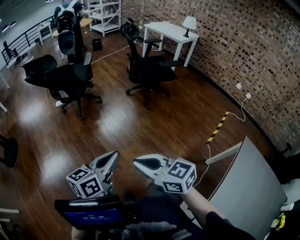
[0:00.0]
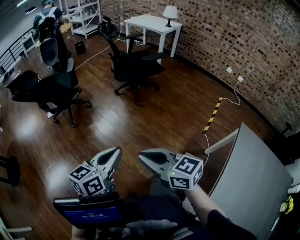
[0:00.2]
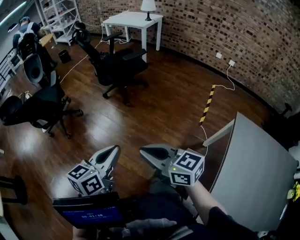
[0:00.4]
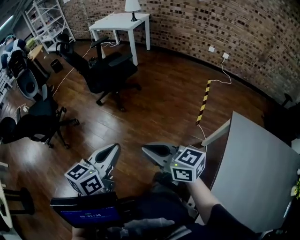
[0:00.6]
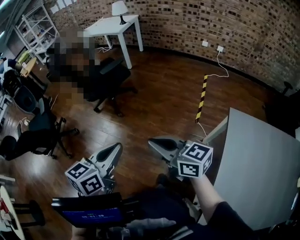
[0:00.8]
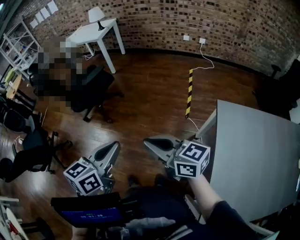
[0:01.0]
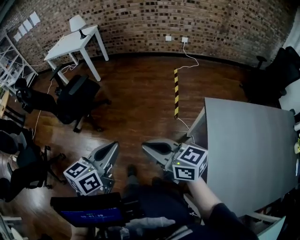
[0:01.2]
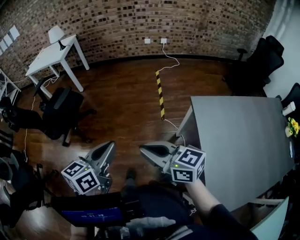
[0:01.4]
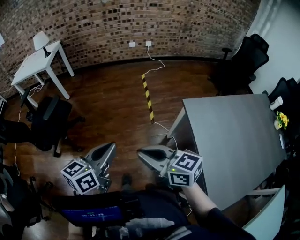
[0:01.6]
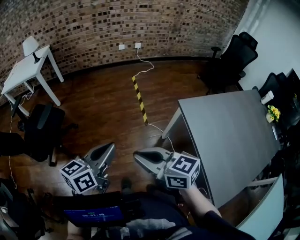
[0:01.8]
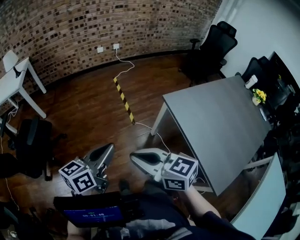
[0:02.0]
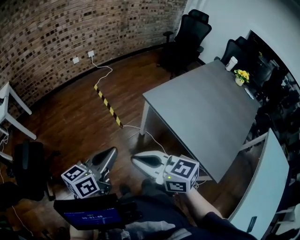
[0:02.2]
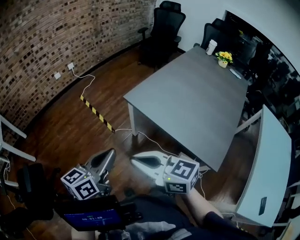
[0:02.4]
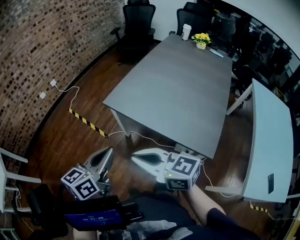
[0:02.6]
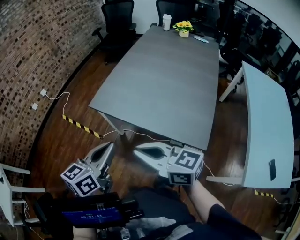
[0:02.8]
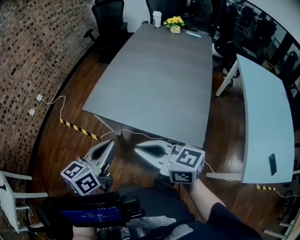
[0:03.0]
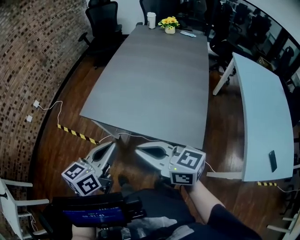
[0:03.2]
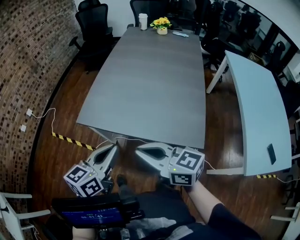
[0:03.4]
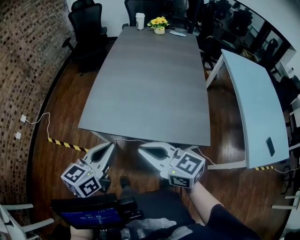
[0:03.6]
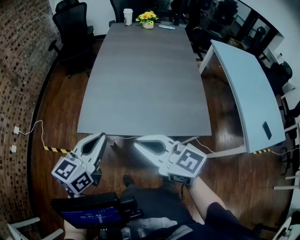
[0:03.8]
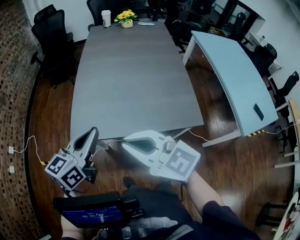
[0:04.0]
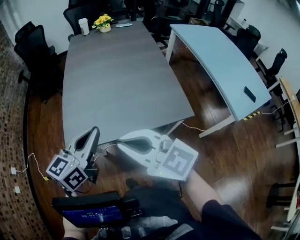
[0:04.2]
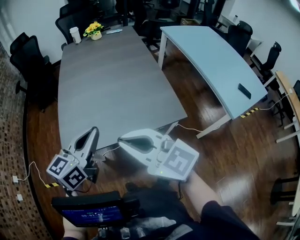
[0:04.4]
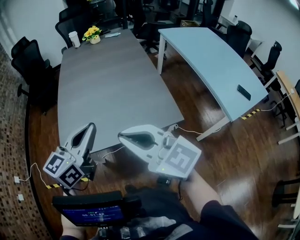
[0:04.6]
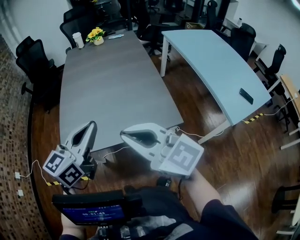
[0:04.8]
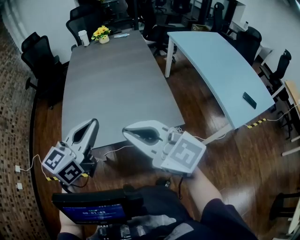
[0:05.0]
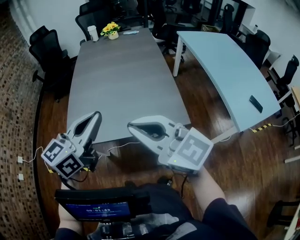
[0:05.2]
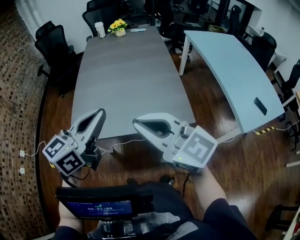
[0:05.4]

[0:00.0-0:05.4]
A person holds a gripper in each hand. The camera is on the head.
0:00.0 to 0:01.4: The pair of grippers is taken some 50 cm. The right gripper changes its angle by roughly 50 degrees. Meanwhile the left gripper swivels roughly 50 degrees.
0:01.4 to 0:02.8: The right gripper shifts by about 20 cm, and changes its angle by about 60 degrees, while the left gripper changes place by approximately 30 cm, and changes its angle by roughly 60 degrees.
0:02.8 to 0:04.0: The right gripper changes place by approximately 15 cm, and turns by roughly 30 degrees. The left gripper moves approximately 20 cm, and turns by some 30 degrees.
0:04.0 to 0:05.4: The two grippers go roughly 20 cm to the right and upward.

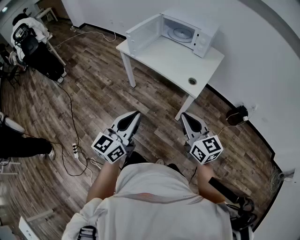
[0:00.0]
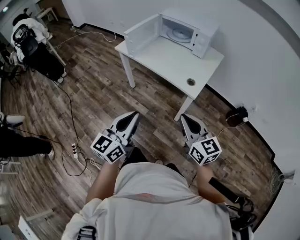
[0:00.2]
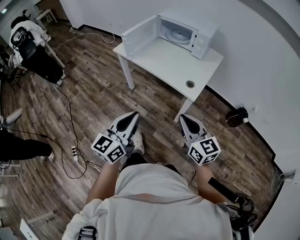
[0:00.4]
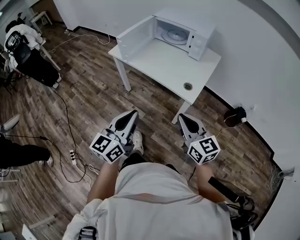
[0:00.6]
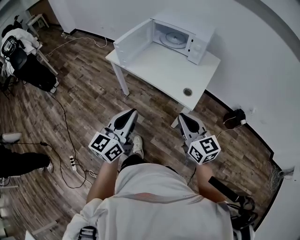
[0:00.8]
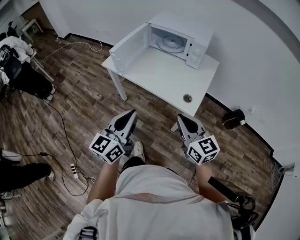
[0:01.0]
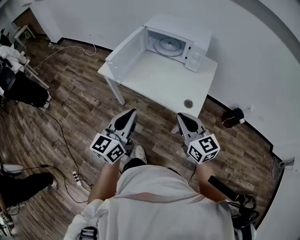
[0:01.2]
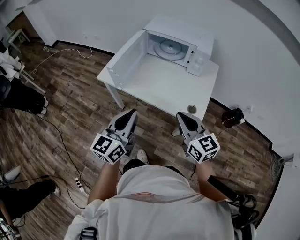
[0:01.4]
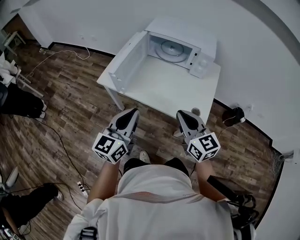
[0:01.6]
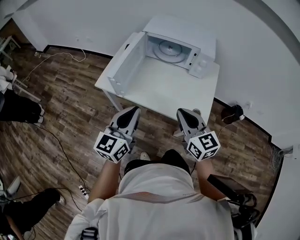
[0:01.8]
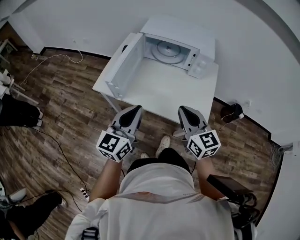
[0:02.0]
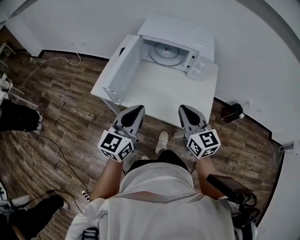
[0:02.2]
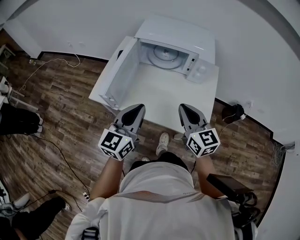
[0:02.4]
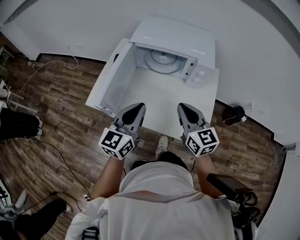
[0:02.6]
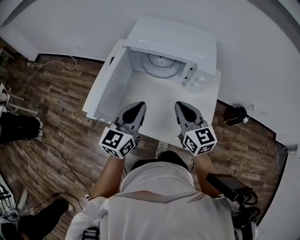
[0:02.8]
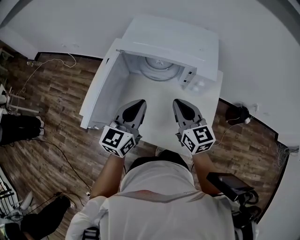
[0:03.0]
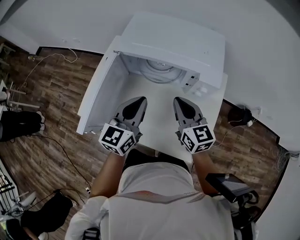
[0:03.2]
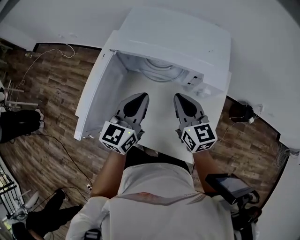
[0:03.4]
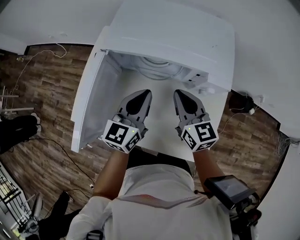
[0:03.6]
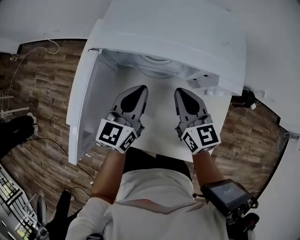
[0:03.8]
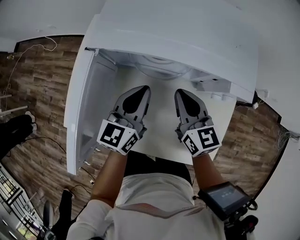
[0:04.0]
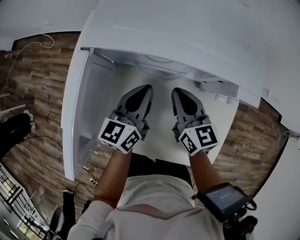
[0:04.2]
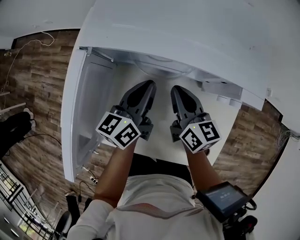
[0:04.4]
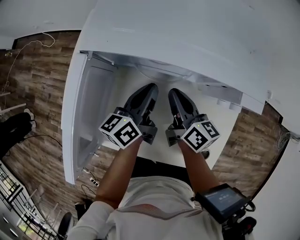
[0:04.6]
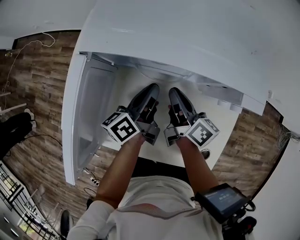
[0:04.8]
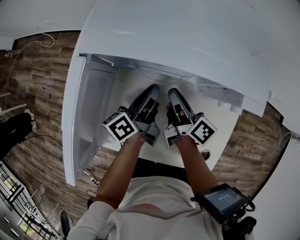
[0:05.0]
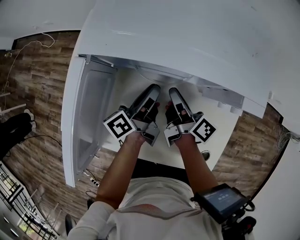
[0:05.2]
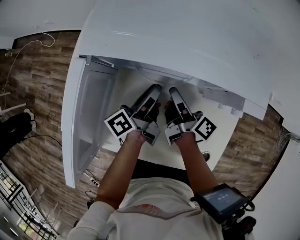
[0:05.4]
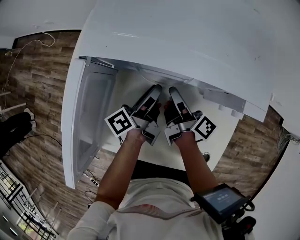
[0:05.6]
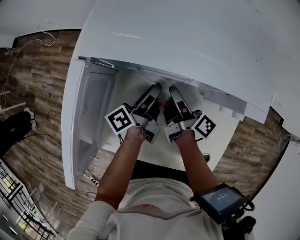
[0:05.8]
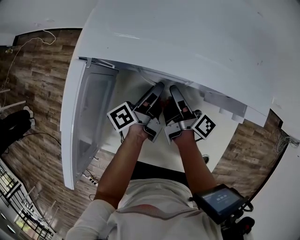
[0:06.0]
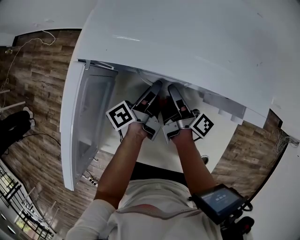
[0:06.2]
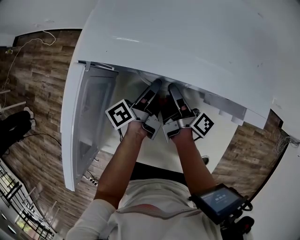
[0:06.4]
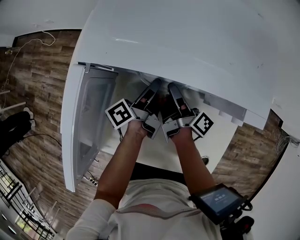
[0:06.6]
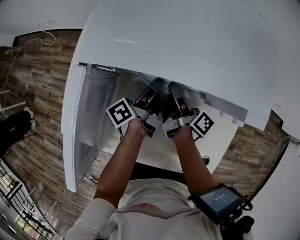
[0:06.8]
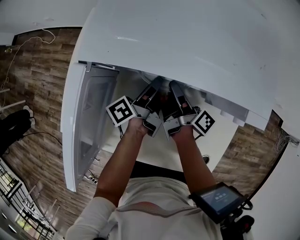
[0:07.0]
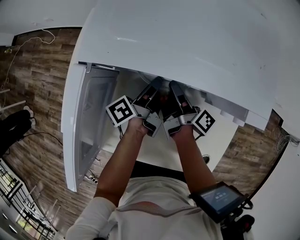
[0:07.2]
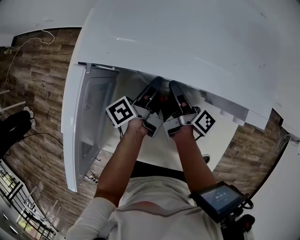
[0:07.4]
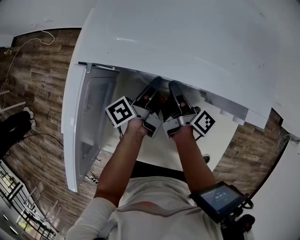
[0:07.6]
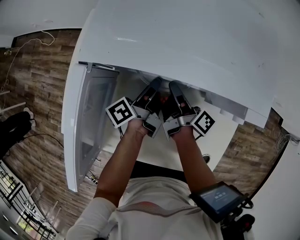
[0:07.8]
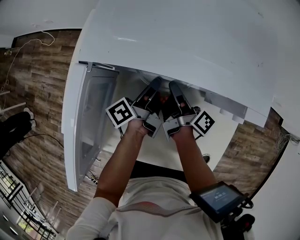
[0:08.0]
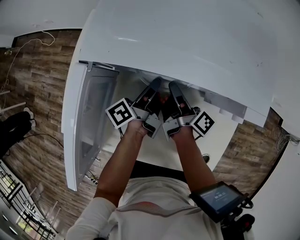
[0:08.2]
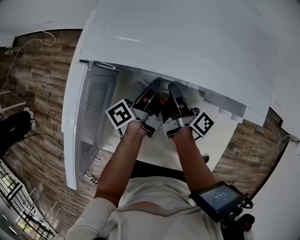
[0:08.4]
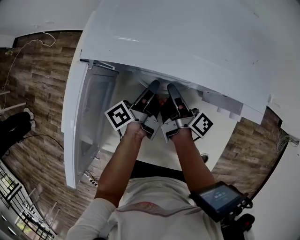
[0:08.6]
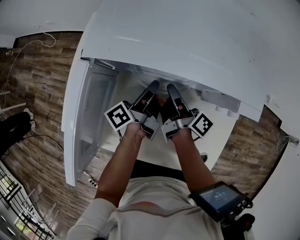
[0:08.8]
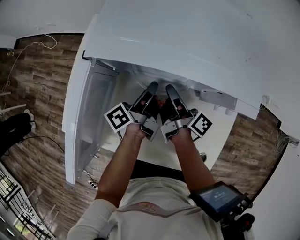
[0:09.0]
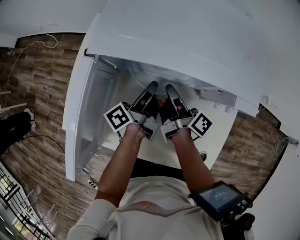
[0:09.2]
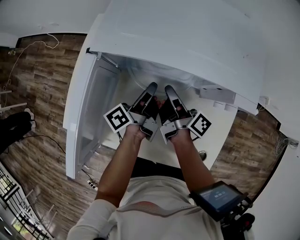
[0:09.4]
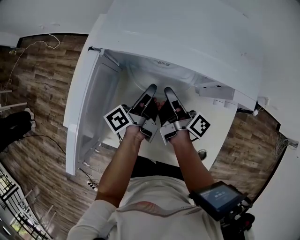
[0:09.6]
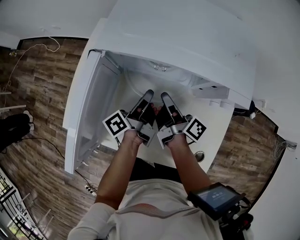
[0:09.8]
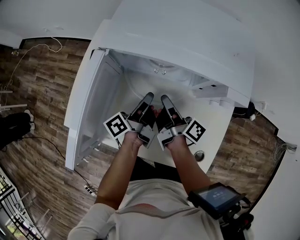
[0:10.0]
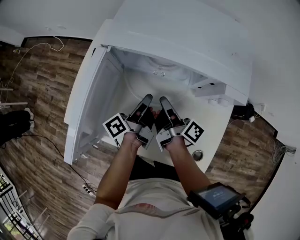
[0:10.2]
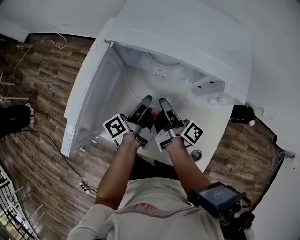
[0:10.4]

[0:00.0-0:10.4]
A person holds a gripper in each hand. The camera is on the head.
0:00.0 to 0:01.4: Both grippers travel together forward, roughly 30 cm.
0:01.4 to 0:03.0: The two grippers go some 35 cm forward.
0:03.0 to 0:04.4: The grippers both shift downward and forward by some 25 cm. The right gripper swivels about 20 degrees. The left gripper changes its angle by roughly 30 degrees.
0:04.4 to 0:06.0: The grippers both shift downward by about 5 cm. The right gripper rolls clockwise, seen from behind, by roughly 60 degrees, and opens. The left gripper rotates around the line of its fingers by about 40 degrees, counterclockwise from behind, and opens up.
0:06.0 to 0:07.4: The left gripper closes up.
0:07.4 to 0:09.0: The grippers move only a little.
0:09.0 to 0:10.4: Both grippers move backward, roughly 10 cm.

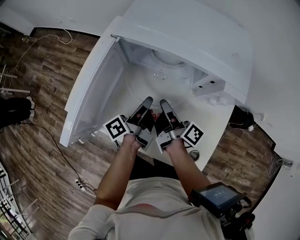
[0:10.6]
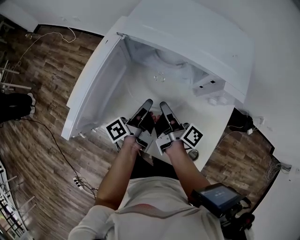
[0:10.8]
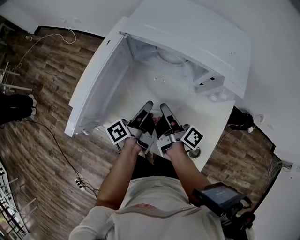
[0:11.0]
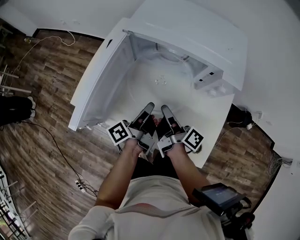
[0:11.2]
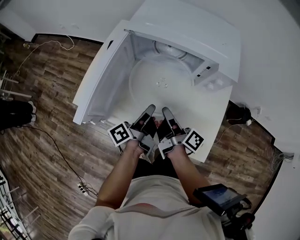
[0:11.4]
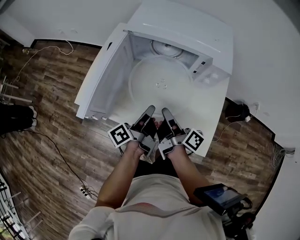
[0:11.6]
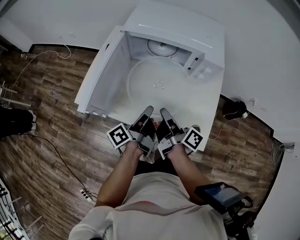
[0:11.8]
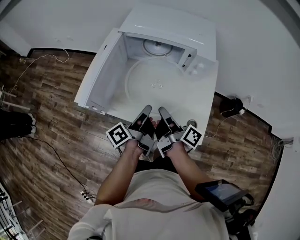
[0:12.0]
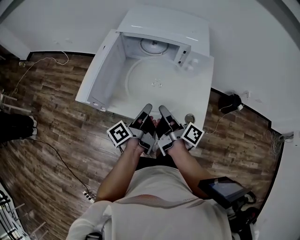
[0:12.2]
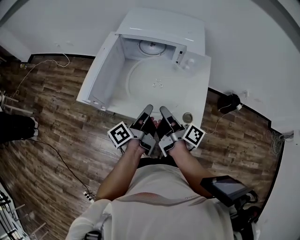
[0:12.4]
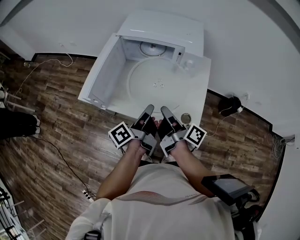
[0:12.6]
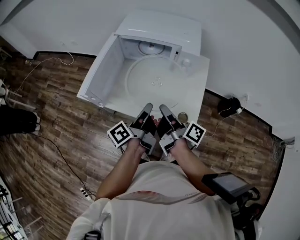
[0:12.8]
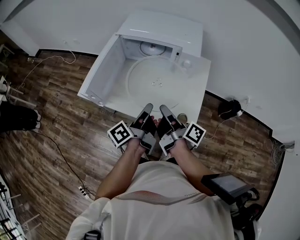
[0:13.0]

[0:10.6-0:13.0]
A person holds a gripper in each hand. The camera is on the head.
0:10.6 to 0:11.8: Both grippers travel together backward and upward, some 20 cm.
0:11.8 to 0:13.0: Both grippers travel together upward, backward and to the right, roughly 10 cm.

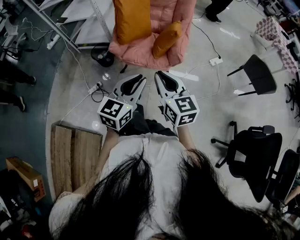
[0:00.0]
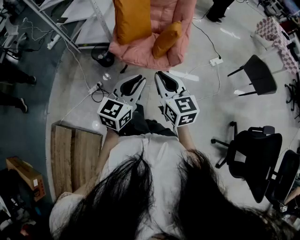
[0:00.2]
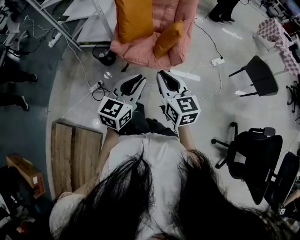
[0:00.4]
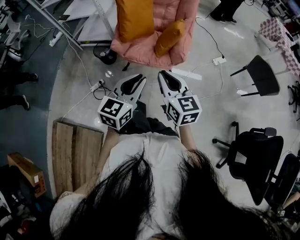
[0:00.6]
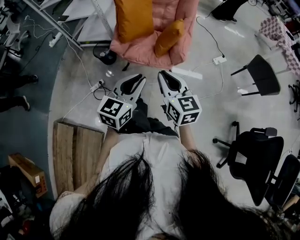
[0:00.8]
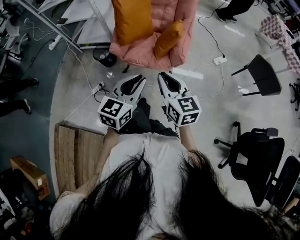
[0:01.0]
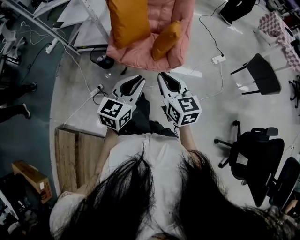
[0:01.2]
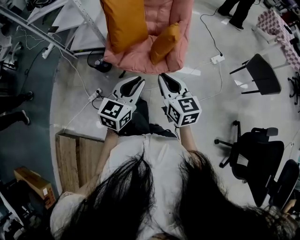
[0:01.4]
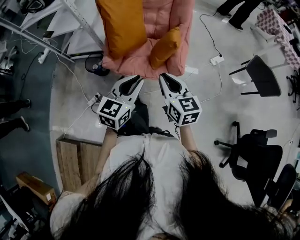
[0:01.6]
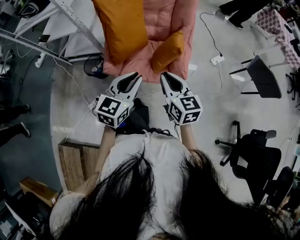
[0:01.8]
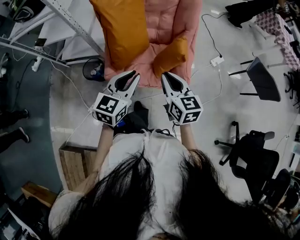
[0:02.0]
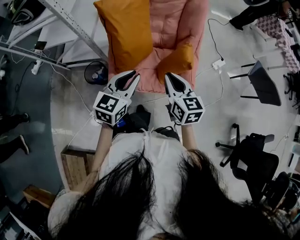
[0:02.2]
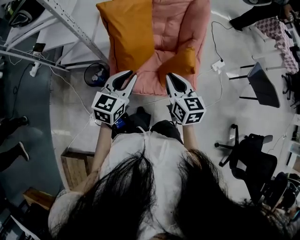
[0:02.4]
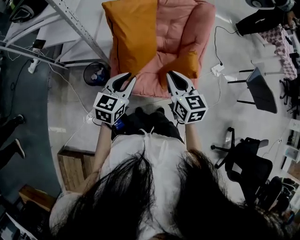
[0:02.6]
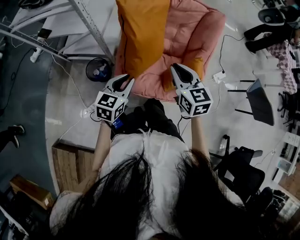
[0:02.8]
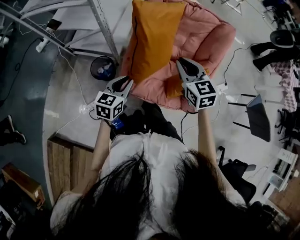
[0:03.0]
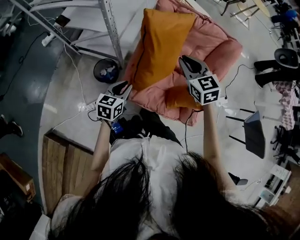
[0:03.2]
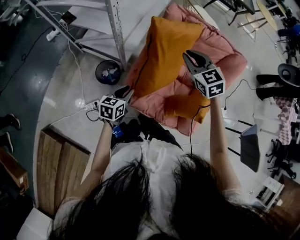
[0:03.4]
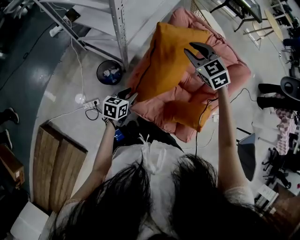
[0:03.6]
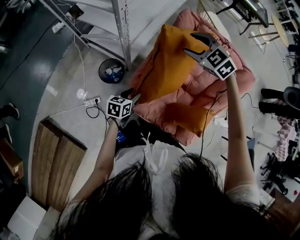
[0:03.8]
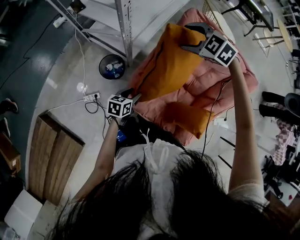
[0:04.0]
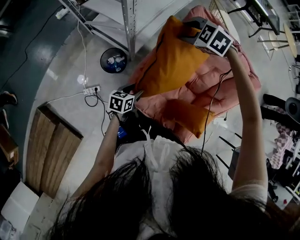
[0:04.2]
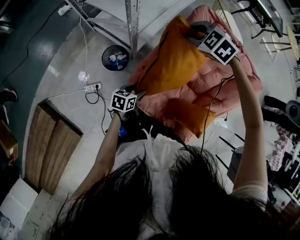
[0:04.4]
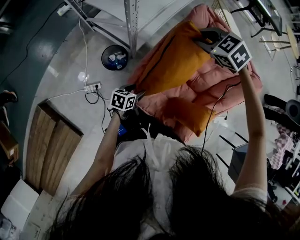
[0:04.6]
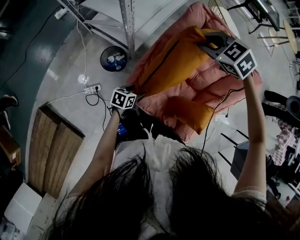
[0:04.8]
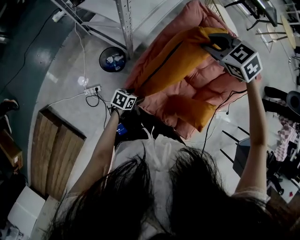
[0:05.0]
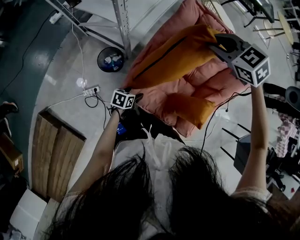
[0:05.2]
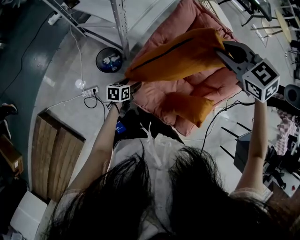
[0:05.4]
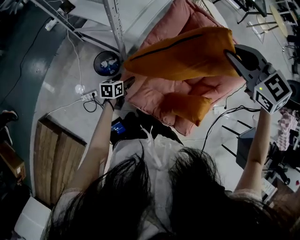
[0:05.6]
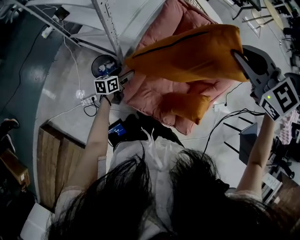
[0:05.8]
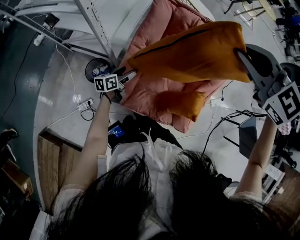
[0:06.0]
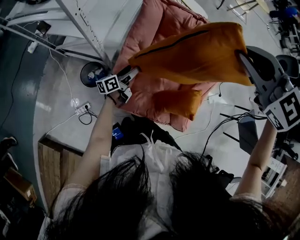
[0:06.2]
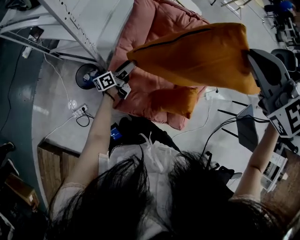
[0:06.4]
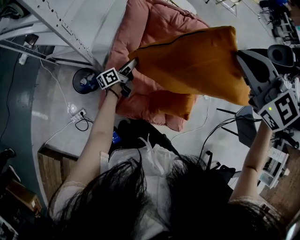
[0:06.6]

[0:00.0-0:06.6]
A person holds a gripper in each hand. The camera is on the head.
0:00.0 to 0:01.6: The grippers both shift forward by some 15 cm.
0:01.6 to 0:03.2: The left gripper moves to the left, forward and downward, about 40 cm, and rotates roughly 30 degrees. Meanwhile the right gripper is displaced forward and to the left by roughly 40 cm, and swivels about 30 degrees.
0:03.2 to 0:05.0: The left gripper goes roughly 20 cm downward, rotates approximately 30 degrees, and opens up. Meanwhile the right gripper goes some 15 cm forward, turns by some 40 degrees, and opens, then closes once more.
0:05.0 to 0:06.6: The left gripper travels forward, to the right and upward by about 25 cm, and angles its fingers upward, by about 50 degrees. The right gripper travels upward, to the right and backward by about 25 cm, and turns by some 30 degrees.
